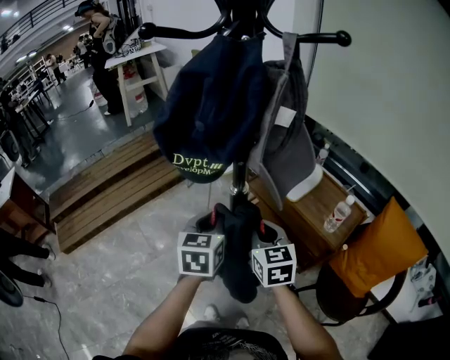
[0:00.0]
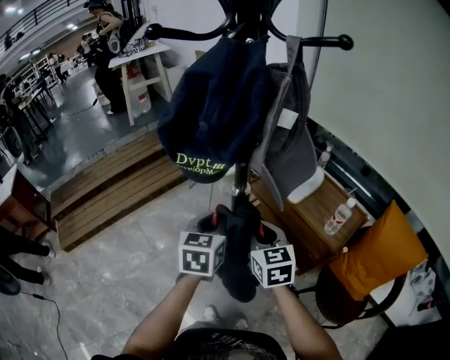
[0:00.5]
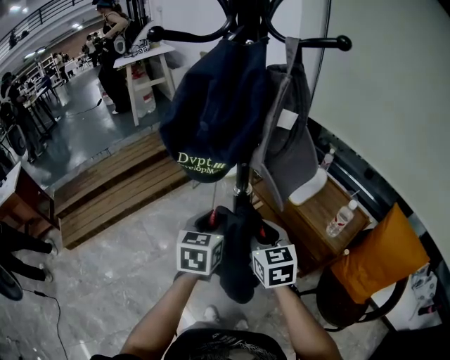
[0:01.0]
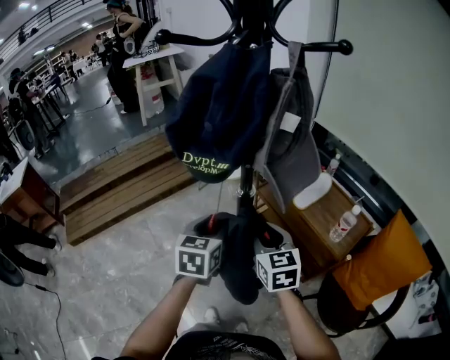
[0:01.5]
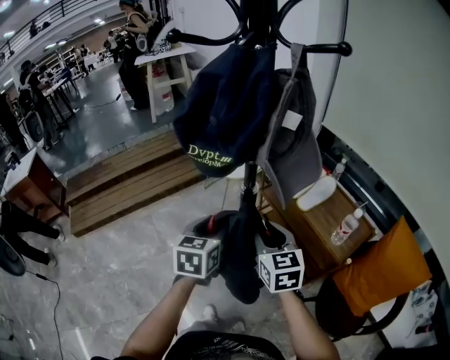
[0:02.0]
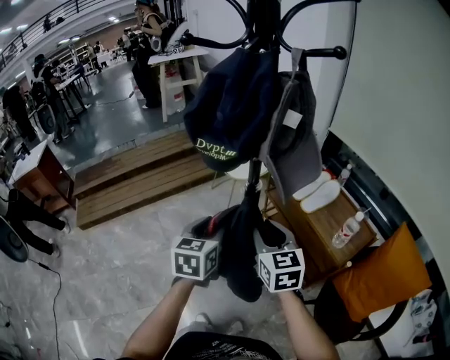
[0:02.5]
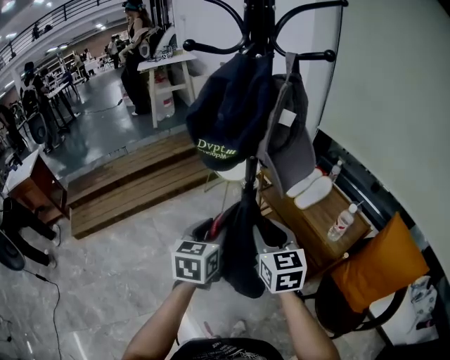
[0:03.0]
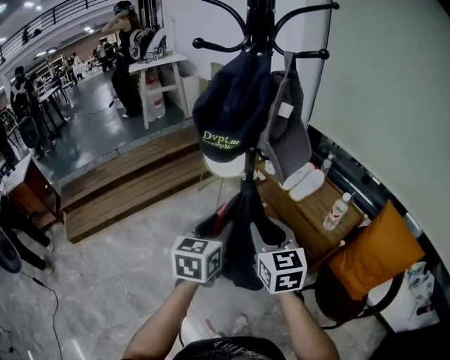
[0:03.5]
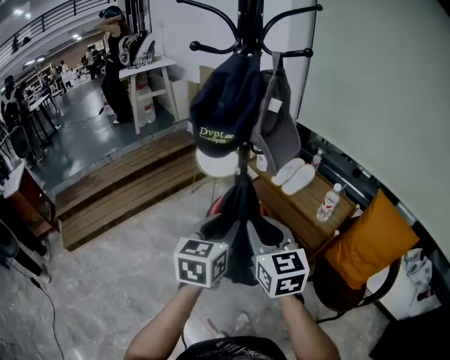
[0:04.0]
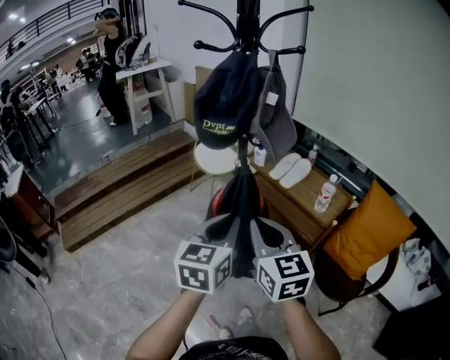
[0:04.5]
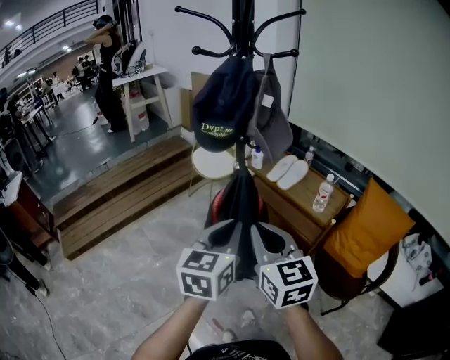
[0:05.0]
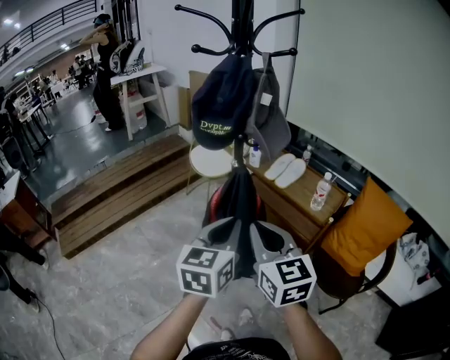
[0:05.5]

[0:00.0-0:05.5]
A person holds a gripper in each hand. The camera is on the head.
0:00.0 to 0:02.0: The left gripper opens up; the right gripper opens its fingers.
0:02.0 to 0:03.5: The grippers both shift backward and upward by some 10 cm.
0:03.5 to 0:05.5: The grippers both shift backward and upward by approximately 15 cm. The right gripper closes its fingers; the left gripper closes.

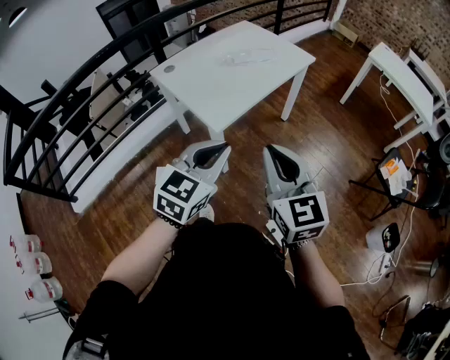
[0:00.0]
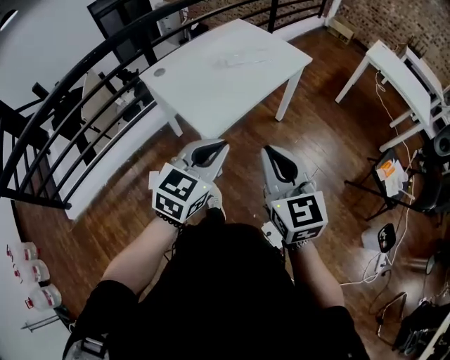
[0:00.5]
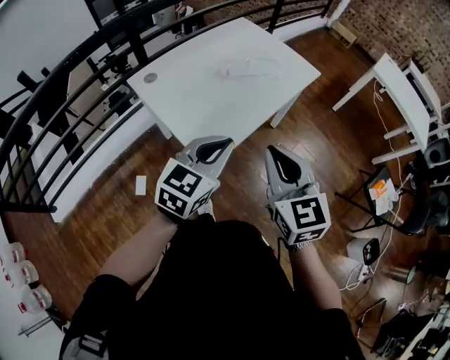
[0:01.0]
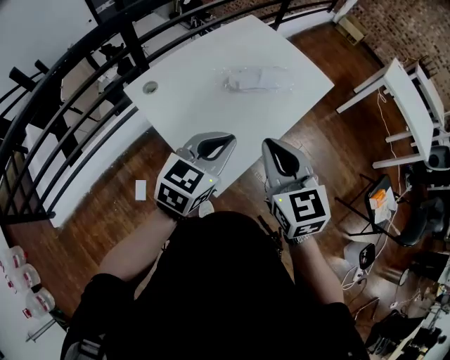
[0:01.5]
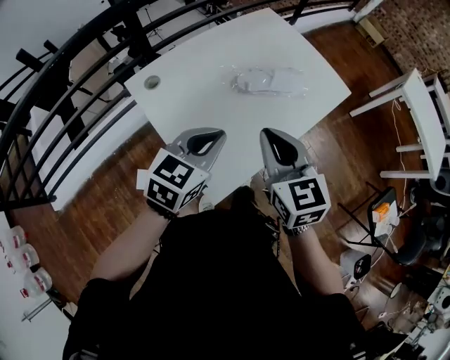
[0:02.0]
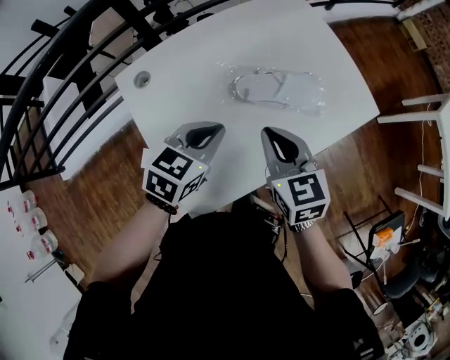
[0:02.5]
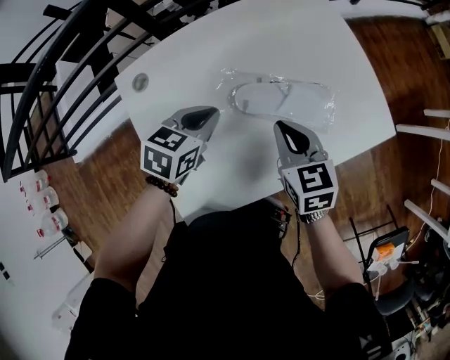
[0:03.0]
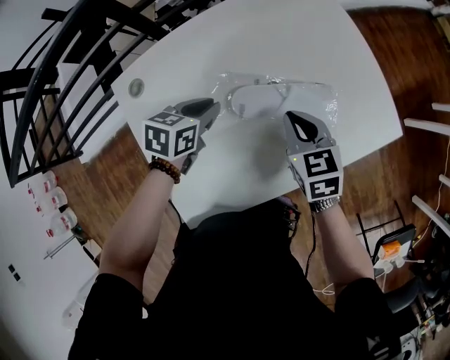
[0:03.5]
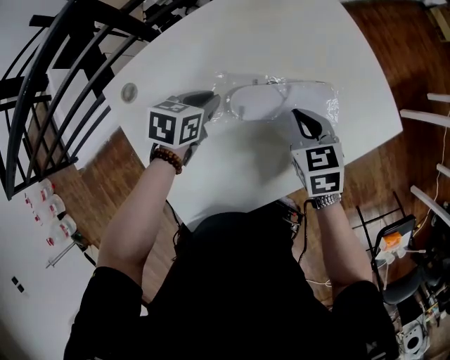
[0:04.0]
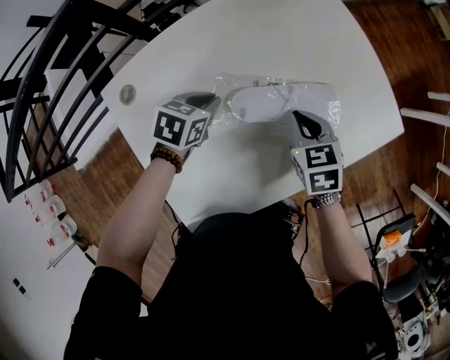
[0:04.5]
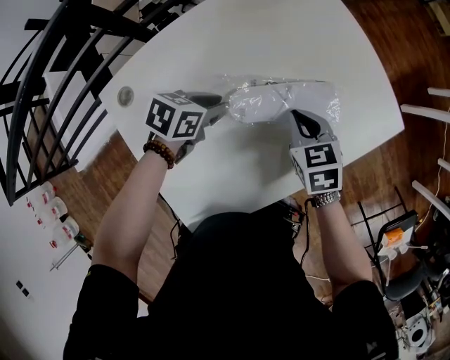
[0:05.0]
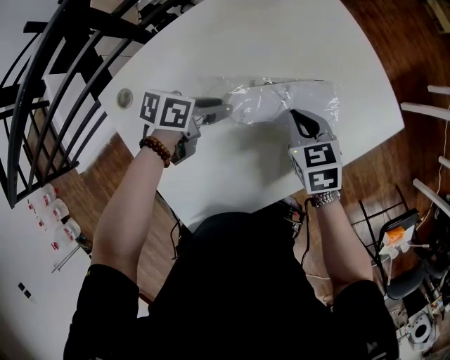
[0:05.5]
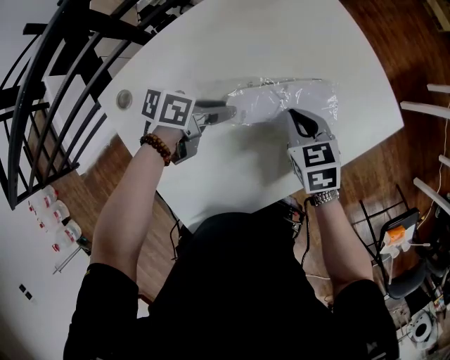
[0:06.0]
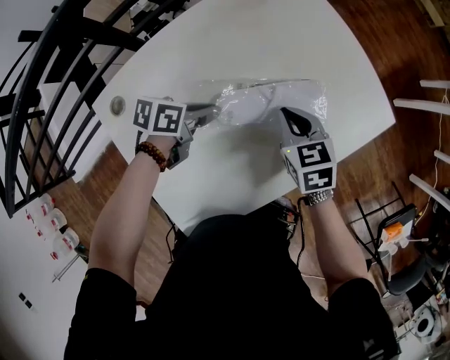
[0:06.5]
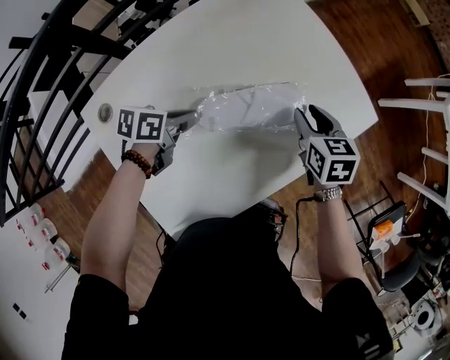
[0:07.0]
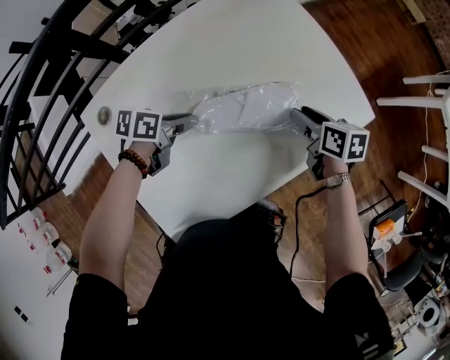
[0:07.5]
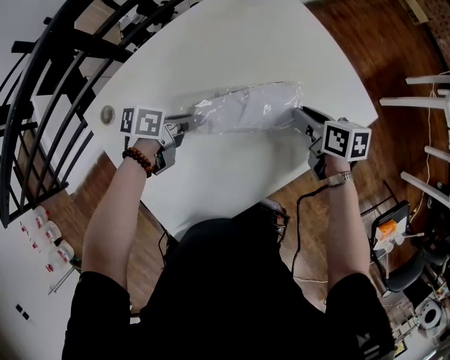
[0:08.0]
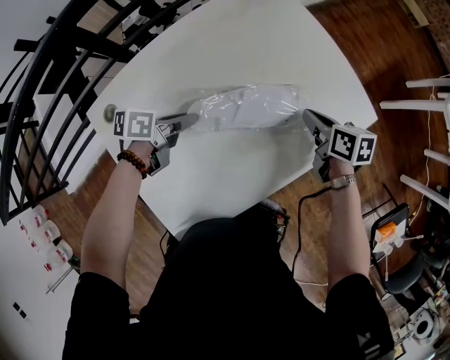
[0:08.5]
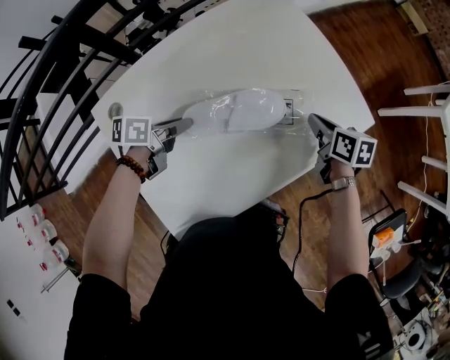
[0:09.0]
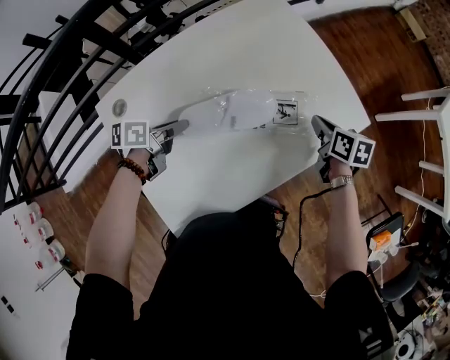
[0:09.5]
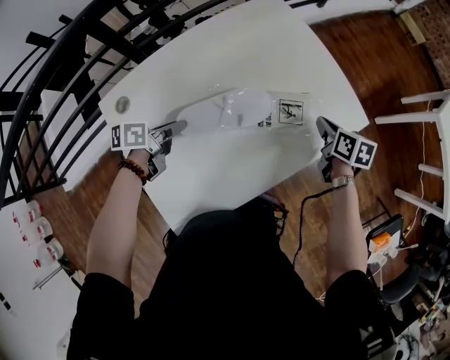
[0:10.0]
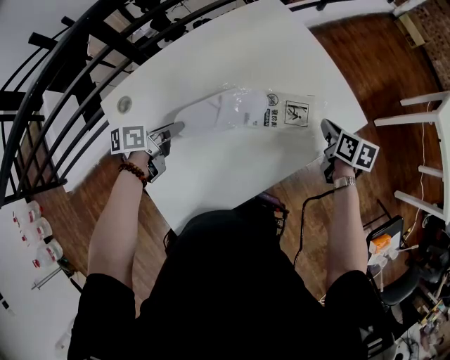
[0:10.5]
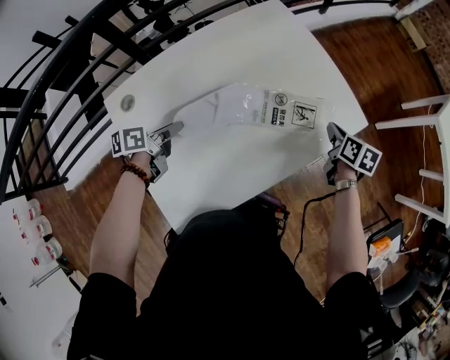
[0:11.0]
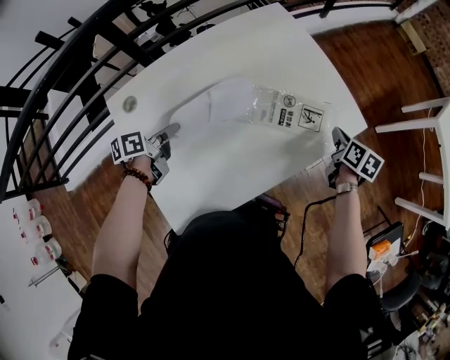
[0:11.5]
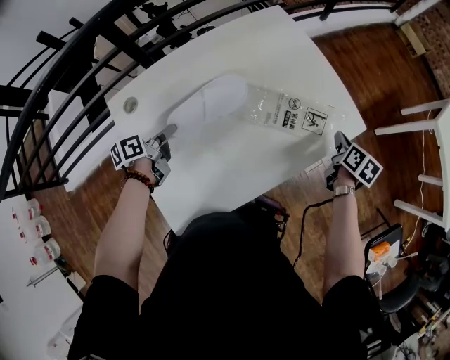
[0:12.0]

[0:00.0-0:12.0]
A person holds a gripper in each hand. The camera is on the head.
0:00.0 to 0:02.0: Both grippers move forward, approximately 40 cm.
0:02.0 to 0:04.0: Both grippers travel together forward and downward, some 35 cm. The left gripper rotates roughly 40 degrees; the right gripper swivels roughly 30 degrees.
0:04.0 to 0:06.0: The left gripper is displaced to the right by some 5 cm, and changes its angle by about 40 degrees.
0:06.0 to 0:08.0: The right gripper heads to the right and forward, covering some 10 cm, and turns by about 40 degrees.
0:08.0 to 0:10.0: The left gripper is displaced to the left and backward by about 10 cm. The right gripper shifts approximately 5 cm to the right.
0:10.0 to 0:12.0: The left gripper is displaced to the left by roughly 5 cm, and rotates some 20 degrees. Meanwhile the right gripper travels to the right by about 10 cm.

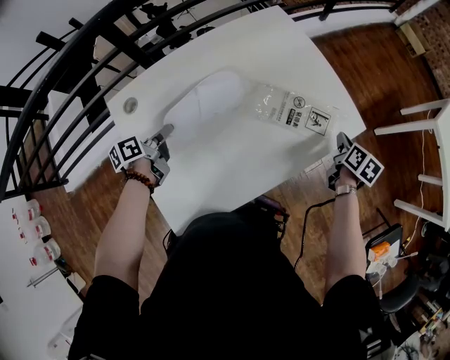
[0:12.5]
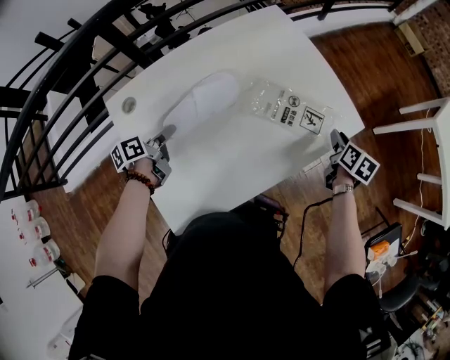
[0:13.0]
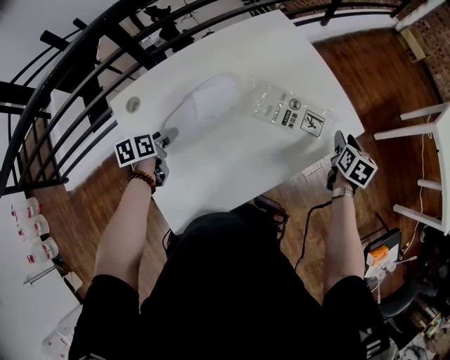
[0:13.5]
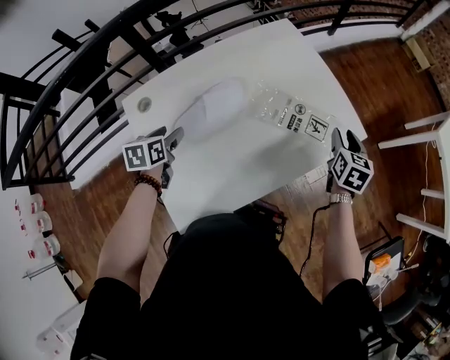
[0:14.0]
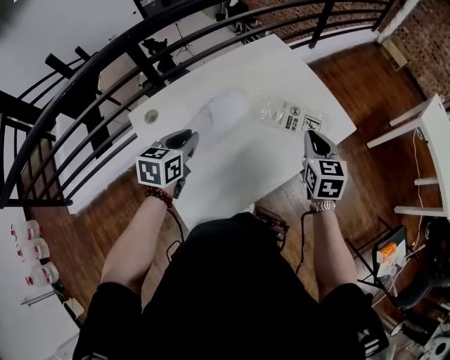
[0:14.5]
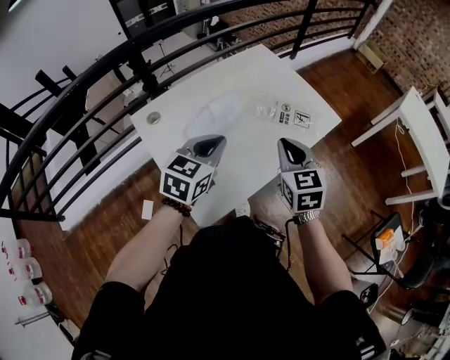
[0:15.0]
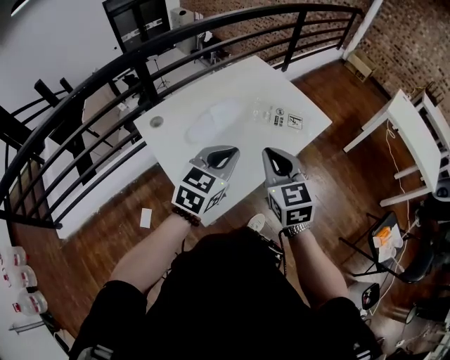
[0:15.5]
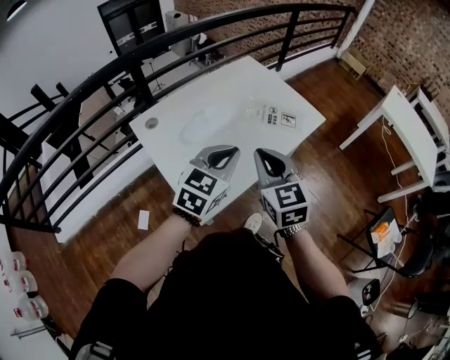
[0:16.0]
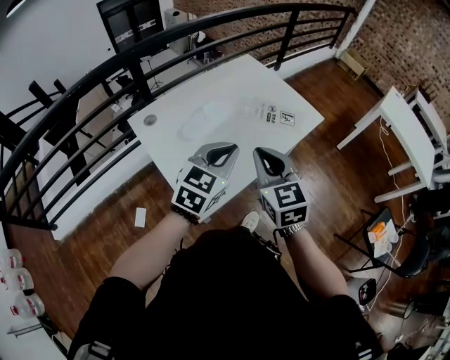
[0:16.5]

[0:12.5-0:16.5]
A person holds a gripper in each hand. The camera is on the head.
0:12.5 to 0:14.5: The right gripper goes roughly 25 cm to the left, upward and backward, swivels approximately 40 degrees, and opens, then closes once more. The left gripper is displaced upward and to the right by approximately 15 cm, rotates around the line of its fingers by about 50 degrees, clockwise from behind, and opens and closes again.
0:14.5 to 0:16.5: The right gripper is displaced backward, to the left and upward by about 30 cm. Meanwhile the left gripper shifts some 25 cm to the right, backward and upward, and turns by approximately 30 degrees.

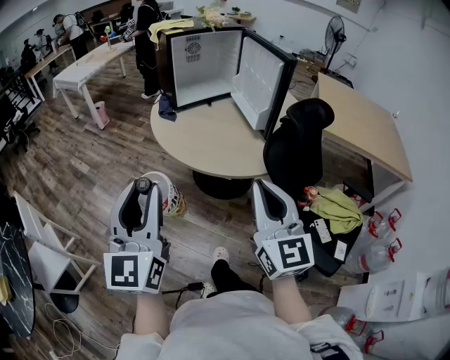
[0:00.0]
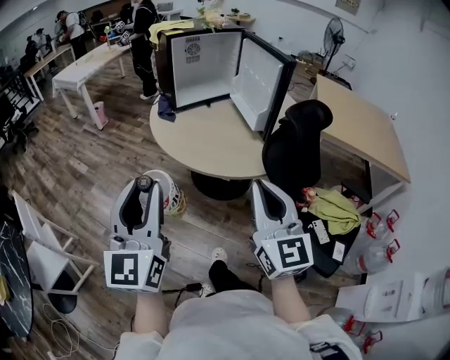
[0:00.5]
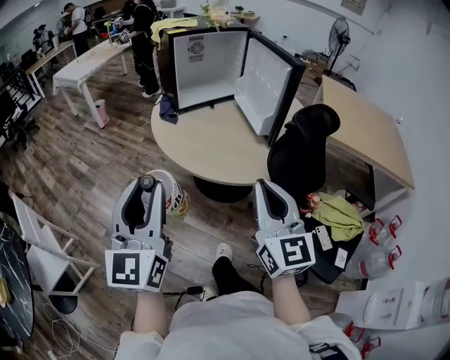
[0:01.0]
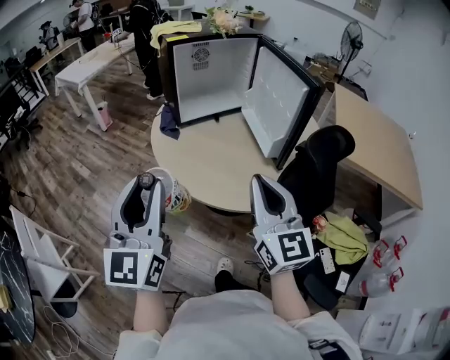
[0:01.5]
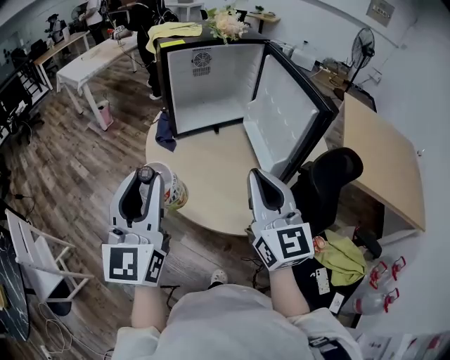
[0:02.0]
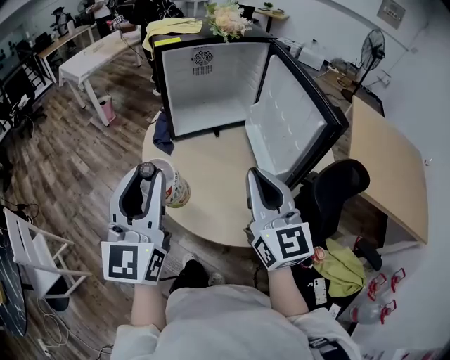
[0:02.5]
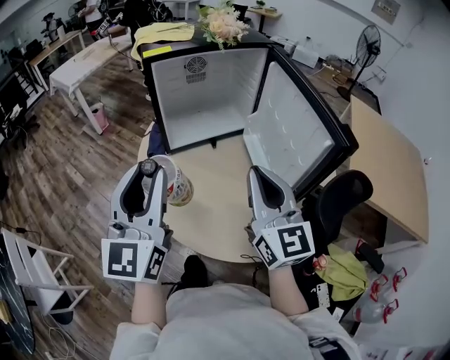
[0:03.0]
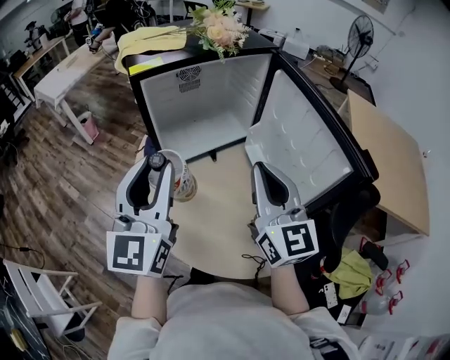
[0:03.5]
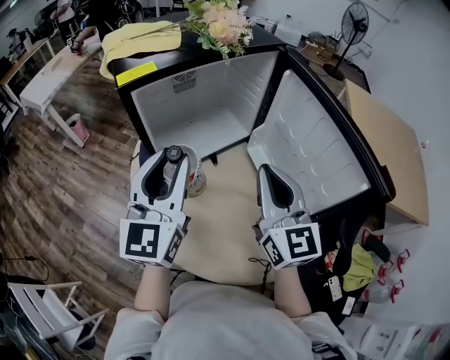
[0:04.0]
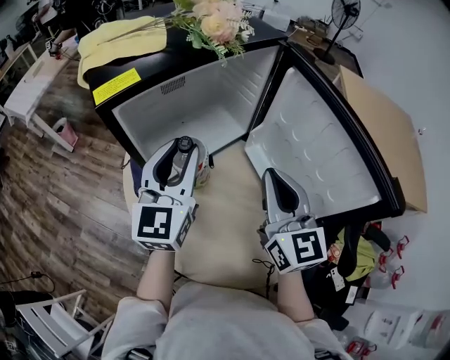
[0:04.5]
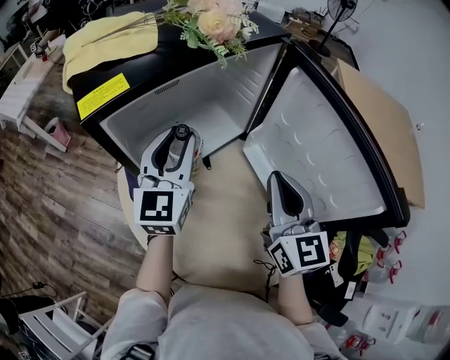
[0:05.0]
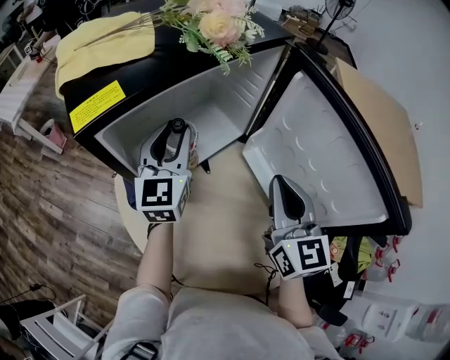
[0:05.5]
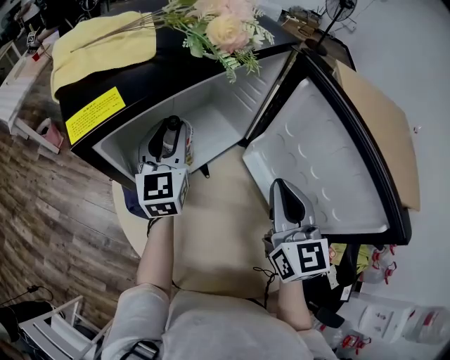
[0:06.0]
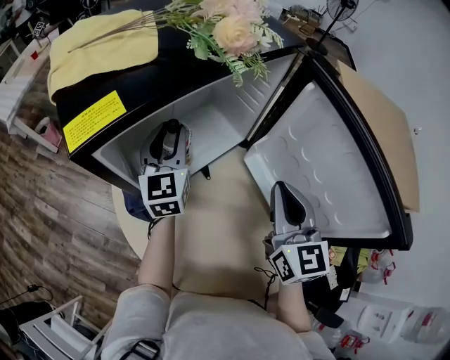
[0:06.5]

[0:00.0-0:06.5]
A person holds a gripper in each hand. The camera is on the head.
0:00.0 to 0:02.0: The two grippers go about 30 cm forward.
0:02.0 to 0:04.5: The two grippers go approximately 35 cm forward. The left gripper rotates approximately 20 degrees.
0:04.5 to 0:06.5: The right gripper shifts about 5 cm forward. Meanwhile the left gripper goes some 20 cm forward and downward.
